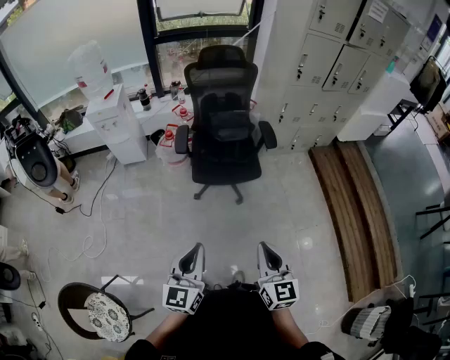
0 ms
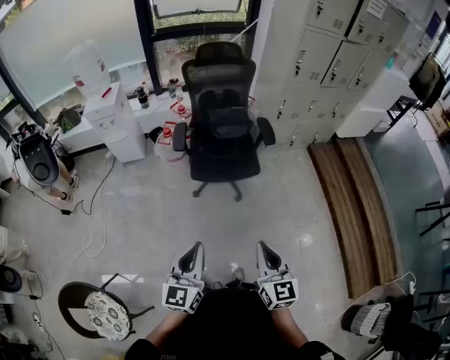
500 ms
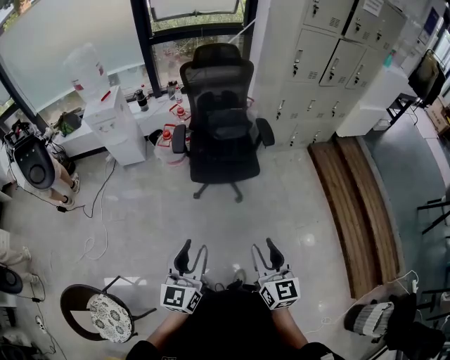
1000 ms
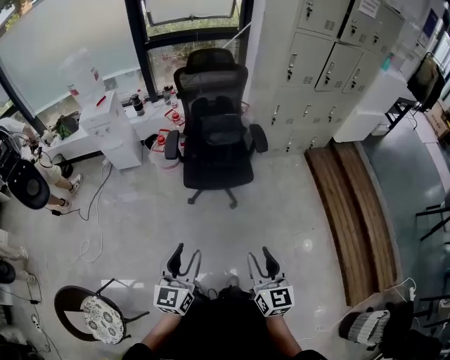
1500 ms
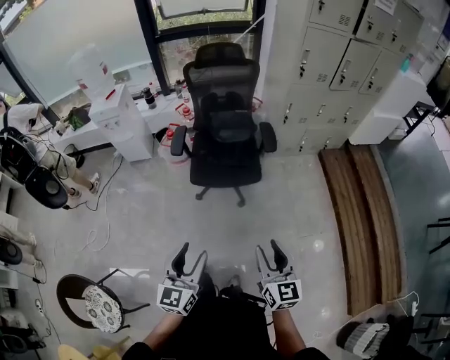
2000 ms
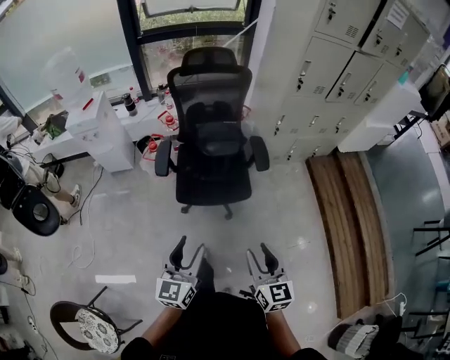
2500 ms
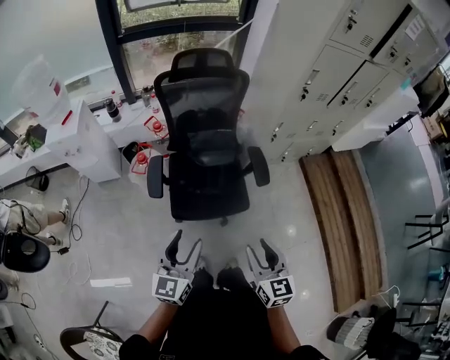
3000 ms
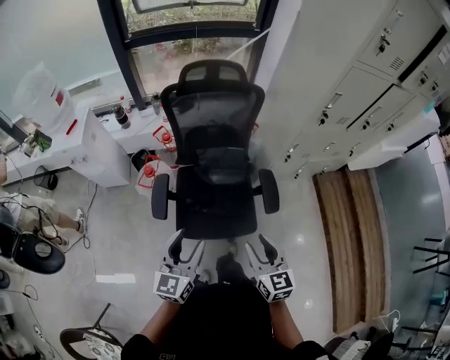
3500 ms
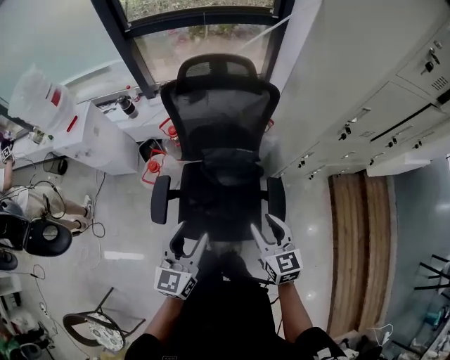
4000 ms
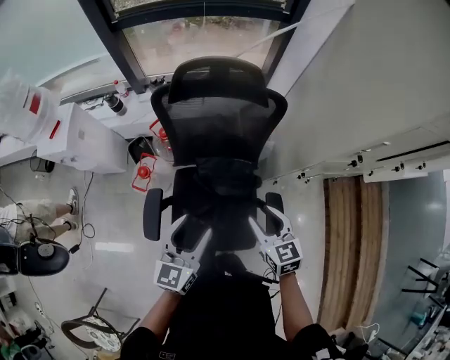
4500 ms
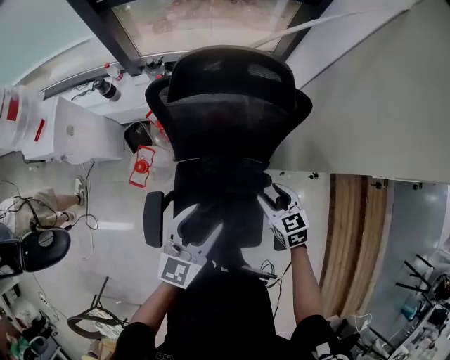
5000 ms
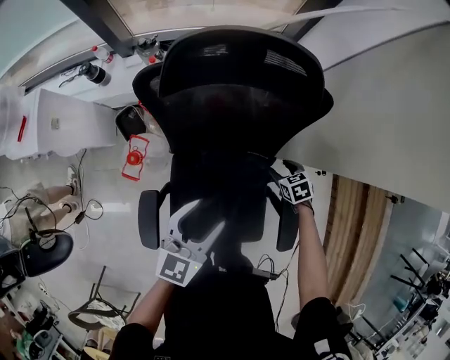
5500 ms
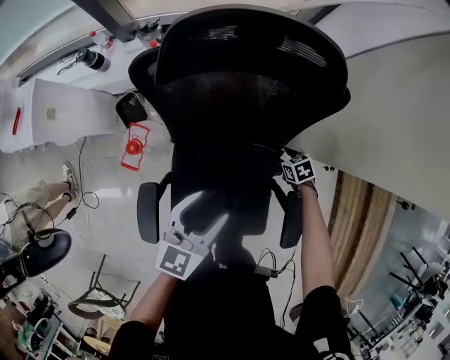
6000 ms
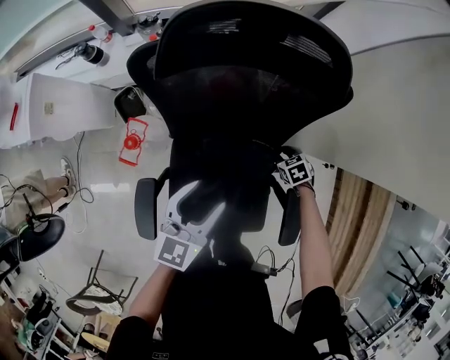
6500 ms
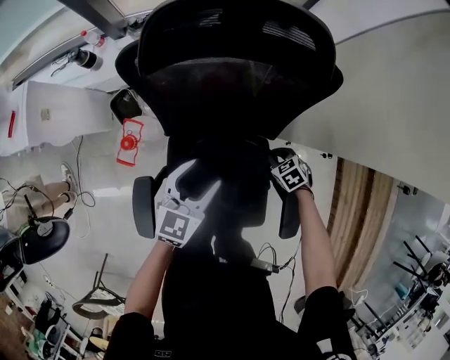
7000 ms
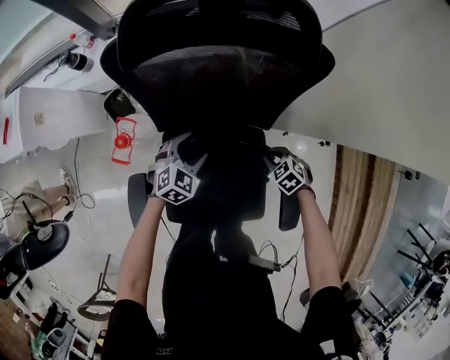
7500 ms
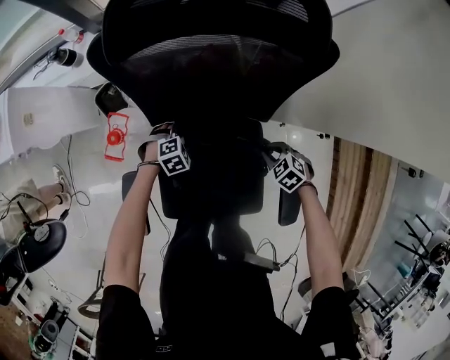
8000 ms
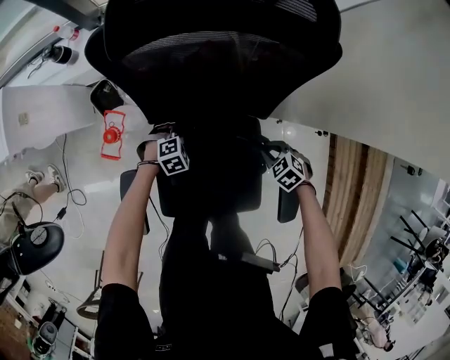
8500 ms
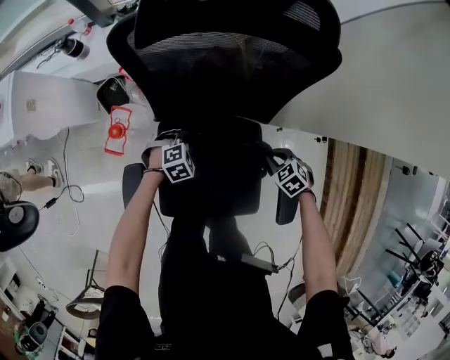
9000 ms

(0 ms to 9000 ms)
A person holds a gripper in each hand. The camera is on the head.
0 ms - 2000 ms: The left gripper travels to the right by some 10 cm, and opens its fingers. The right gripper moves to the right and forward, approximately 10 cm, and opens.
2000 ms - 4500 ms: Both grippers are carried forward, about 70 cm. The right gripper rotates roughly 30 degrees.
4500 ms - 7000 ms: The right gripper moves downward, some 35 cm, tips its fingers downward by some 40 degrees, and closes, while the left gripper is displaced downward and forward by about 25 cm, and changes its angle by some 20 degrees.
7000 ms - 9000 ms: The right gripper shifts by roughly 5 cm; the left gripper is displaced downward by roughly 25 cm, tilts its fingers some 40 degrees downward, and closes up.

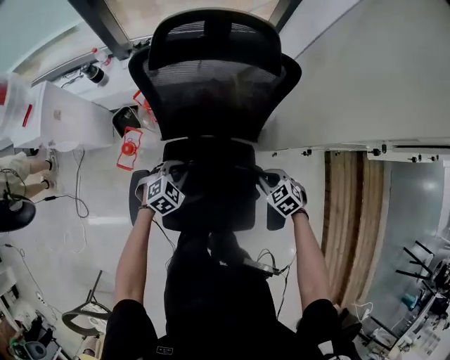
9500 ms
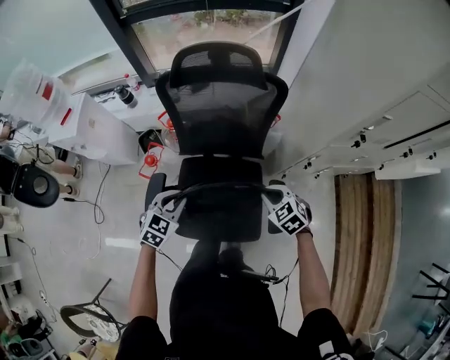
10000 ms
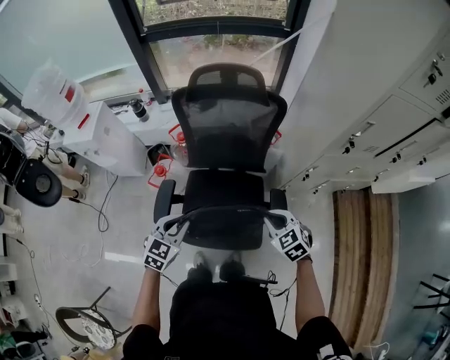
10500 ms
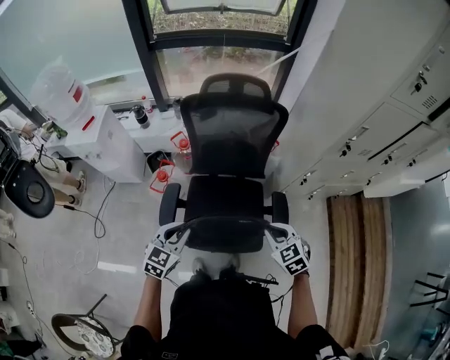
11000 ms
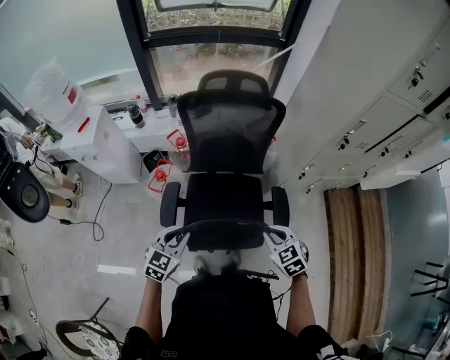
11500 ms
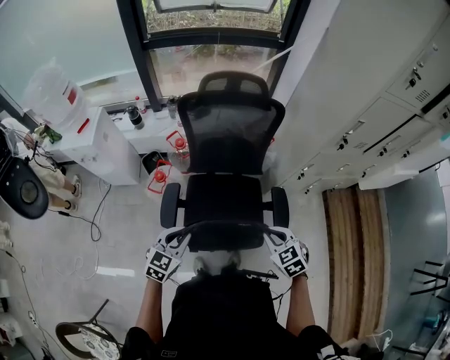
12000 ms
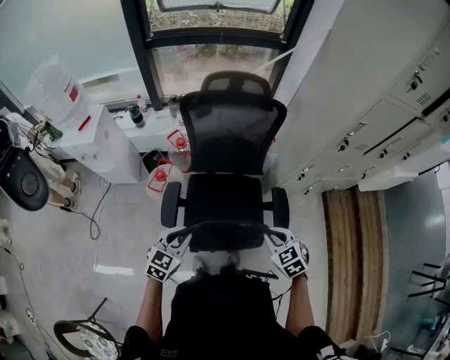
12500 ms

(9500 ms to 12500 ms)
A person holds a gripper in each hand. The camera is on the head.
9500 ms - 11000 ms: Both grippers travel together upward and backward, approximately 30 cm. The left gripper changes its angle by approximately 40 degrees.
11000 ms - 12500 ms: The grippers stay close to where they were, moving slightly.

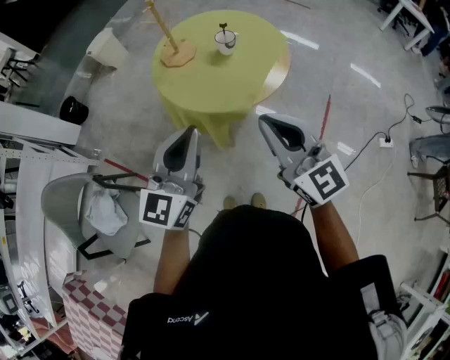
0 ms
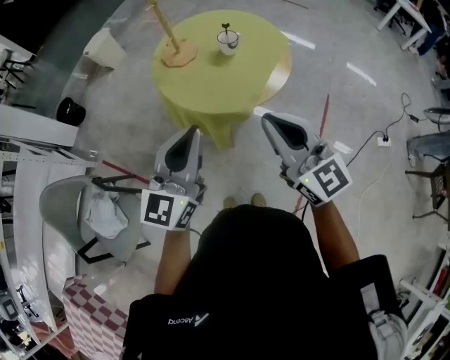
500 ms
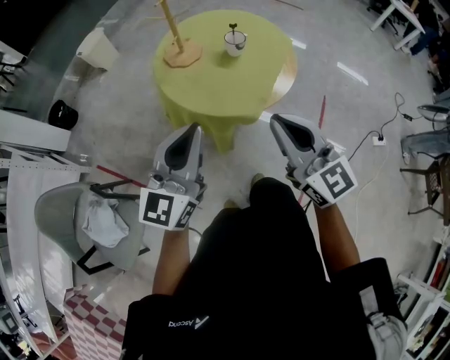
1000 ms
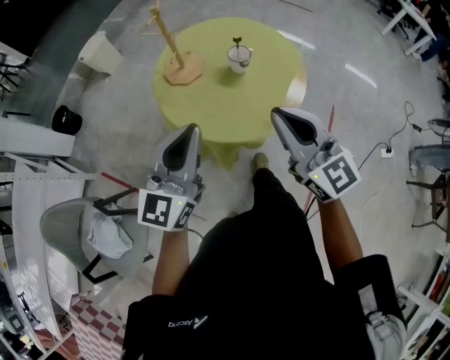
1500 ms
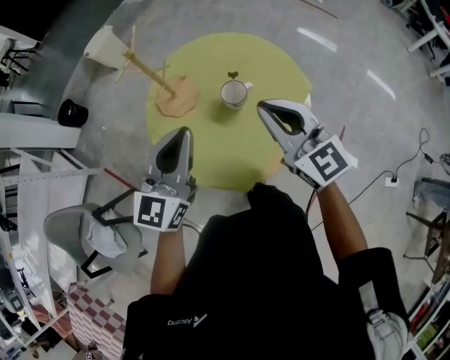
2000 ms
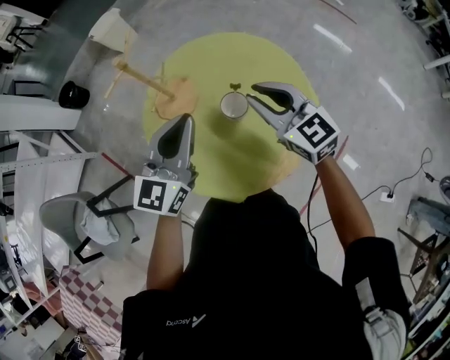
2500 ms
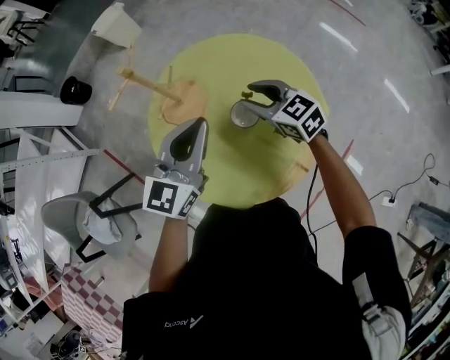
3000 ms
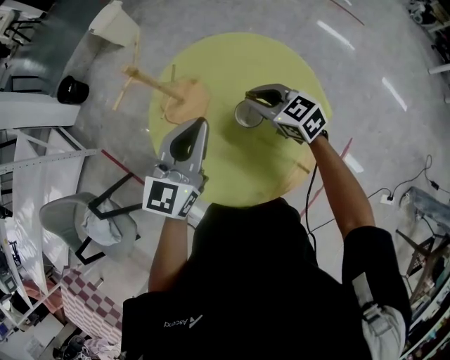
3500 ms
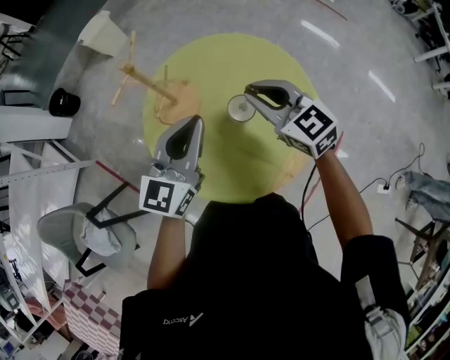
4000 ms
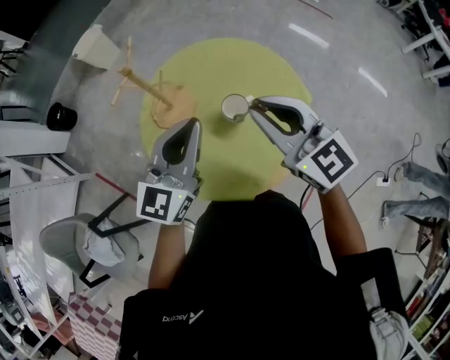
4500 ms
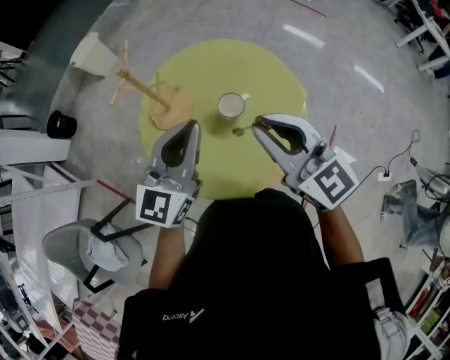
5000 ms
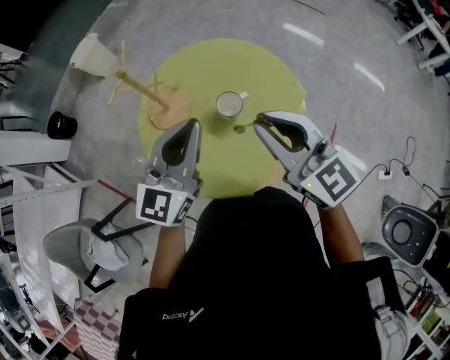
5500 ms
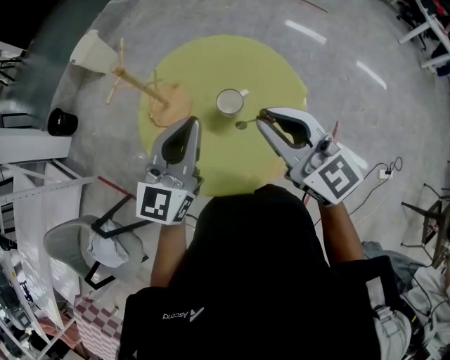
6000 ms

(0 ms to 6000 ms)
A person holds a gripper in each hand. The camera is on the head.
0 ms - 2000 ms: Both grippers travel together forward, approximately 35 cm.
2000 ms - 4000 ms: The right gripper shifts some 15 cm forward and downward, and opens, then closes again. The left gripper heads forward, covering approximately 10 cm.
4000 ms - 6000 ms: The left gripper moves roughly 5 cm; the right gripper moves backward and upward, approximately 15 cm, and turns by roughly 20 degrees.

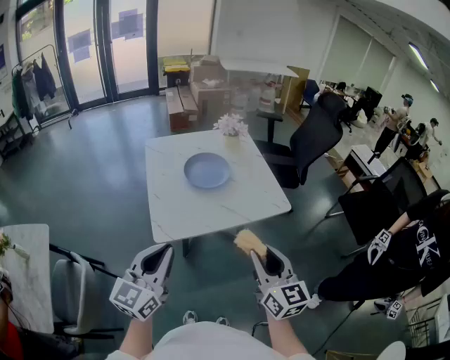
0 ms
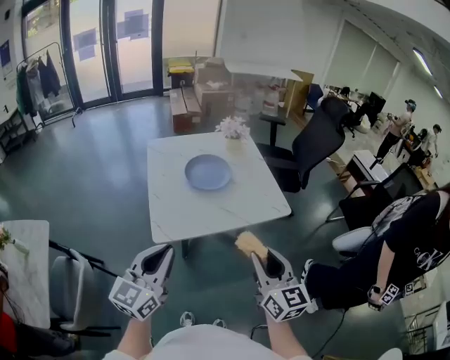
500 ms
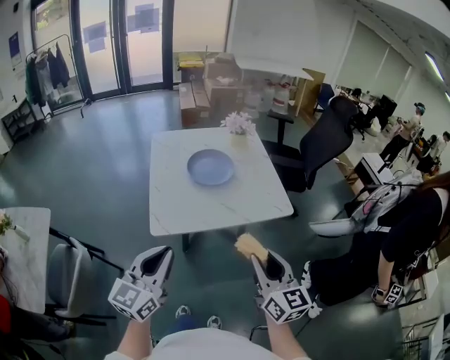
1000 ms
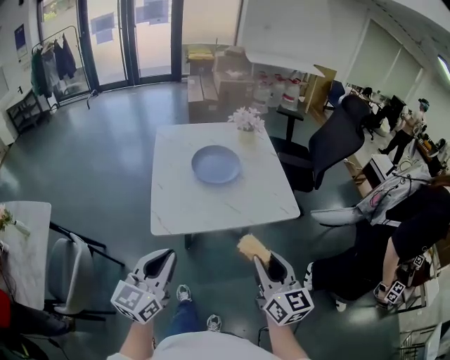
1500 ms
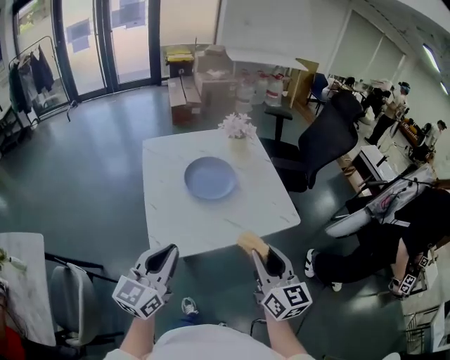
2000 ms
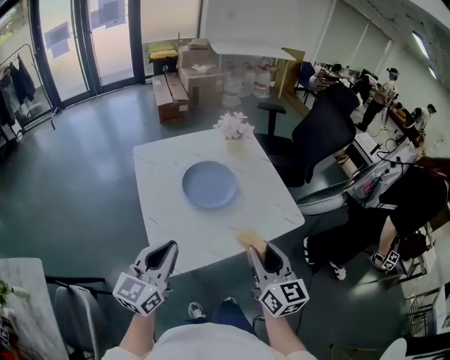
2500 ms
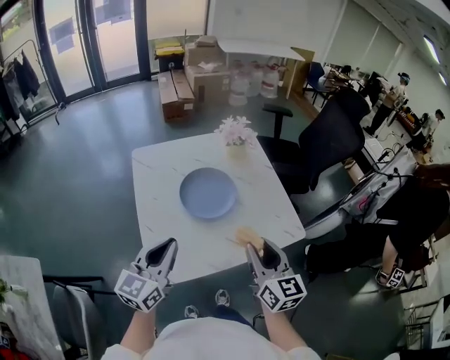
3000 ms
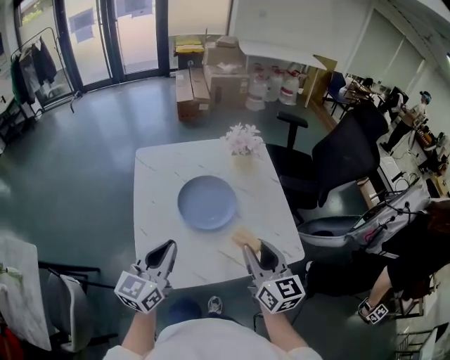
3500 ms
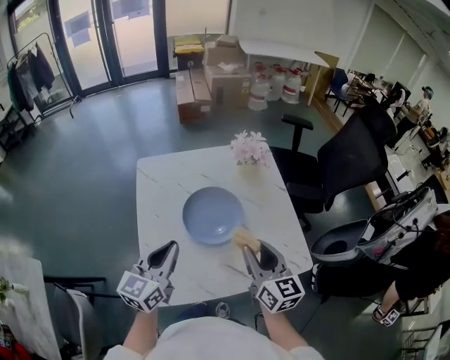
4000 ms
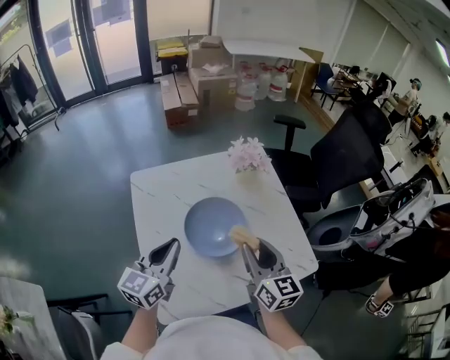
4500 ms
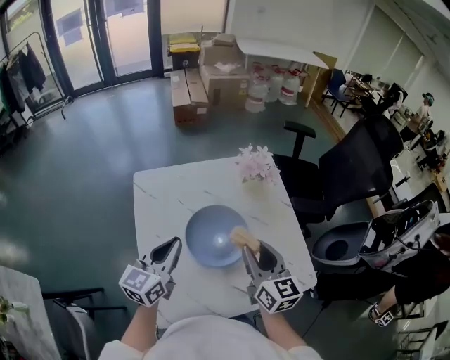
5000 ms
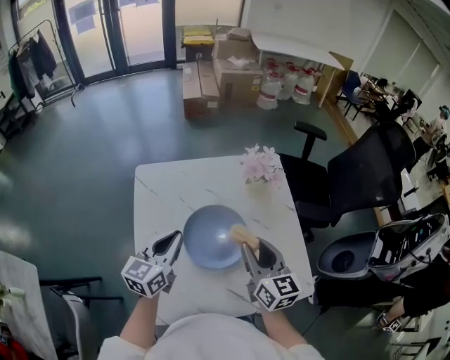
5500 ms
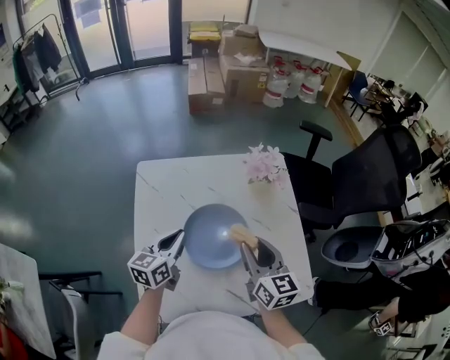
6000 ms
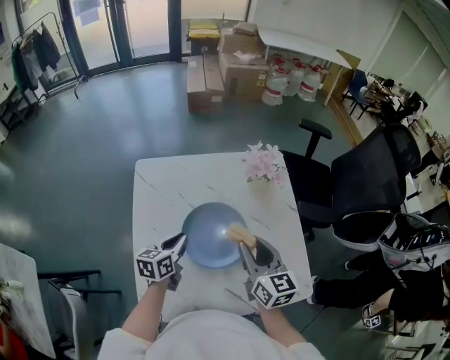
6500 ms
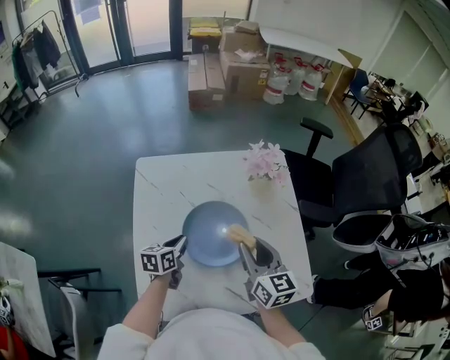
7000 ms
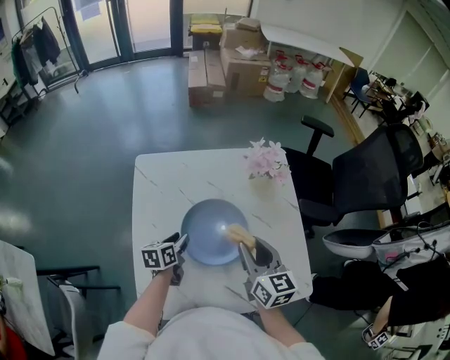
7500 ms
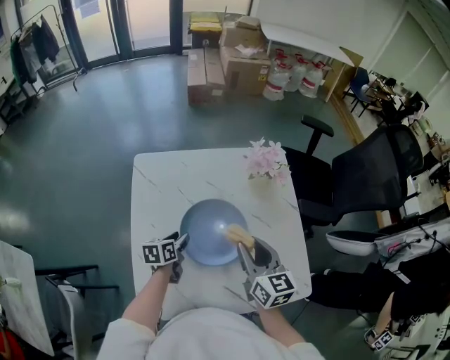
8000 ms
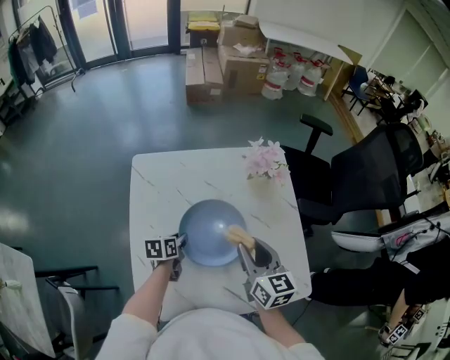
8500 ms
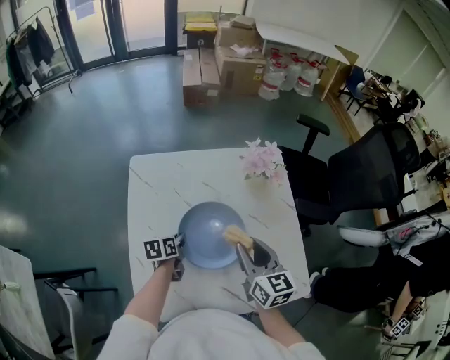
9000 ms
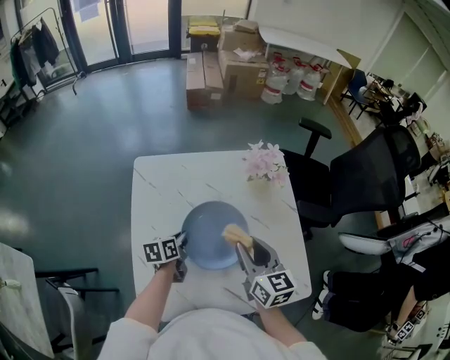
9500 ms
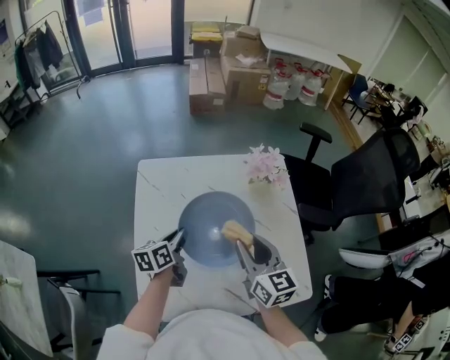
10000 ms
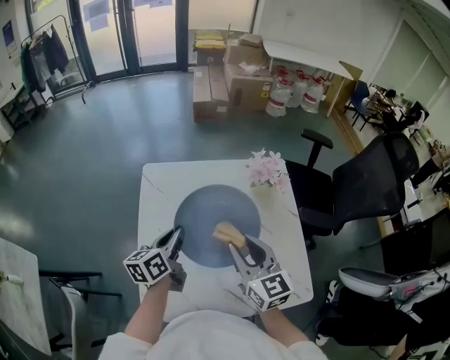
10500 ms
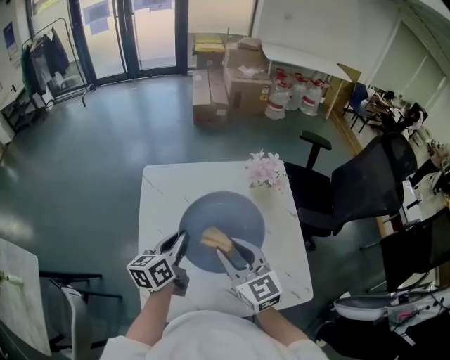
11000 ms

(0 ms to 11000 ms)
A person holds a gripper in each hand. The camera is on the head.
0 ms - 2000 ms: The two grippers go approximately 10 cm forward.
2000 ms - 3500 ms: Both grippers travel together forward, roughly 20 cm.
3500 ms - 5500 ms: Both grippers move forward, approximately 20 cm.
5500 ms - 7500 ms: The left gripper travels downward by some 20 cm, turns by roughly 40 degrees, and opens its fingers.
7500 ms - 9000 ms: The grippers stay close to where they were, moving slightly.
9000 ms - 11000 ms: The left gripper is displaced upward by approximately 20 cm, and rotates approximately 30 degrees. Meanwhile the right gripper goes about 10 cm to the left and upward, and turns by roughly 30 degrees.
